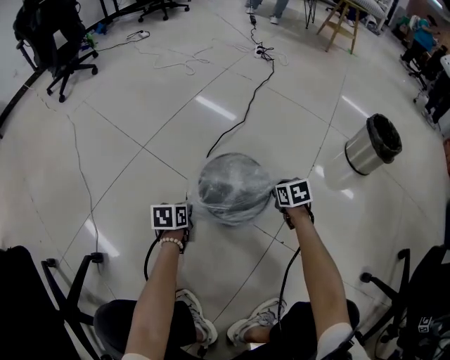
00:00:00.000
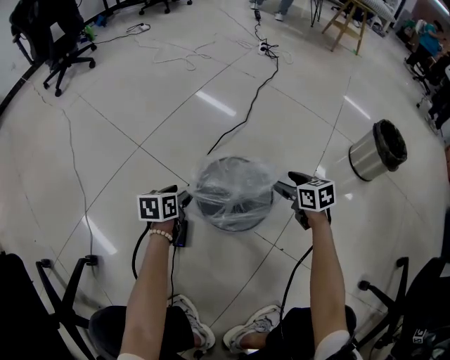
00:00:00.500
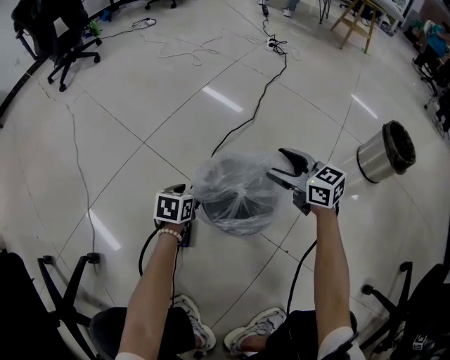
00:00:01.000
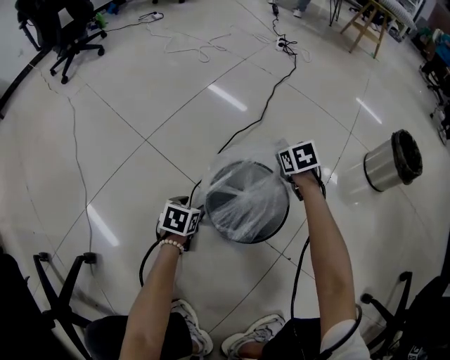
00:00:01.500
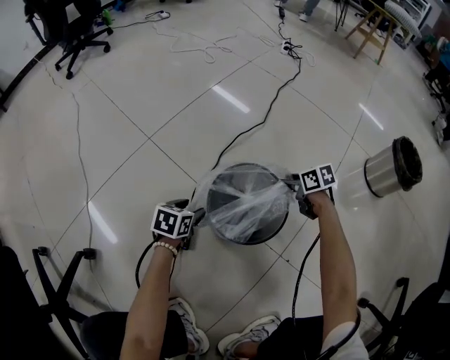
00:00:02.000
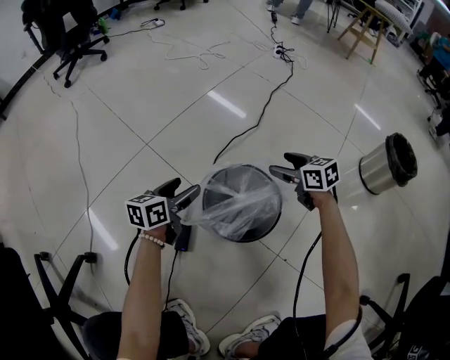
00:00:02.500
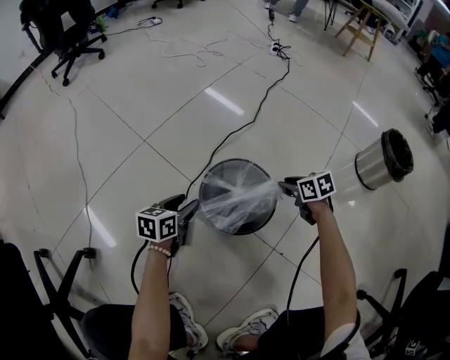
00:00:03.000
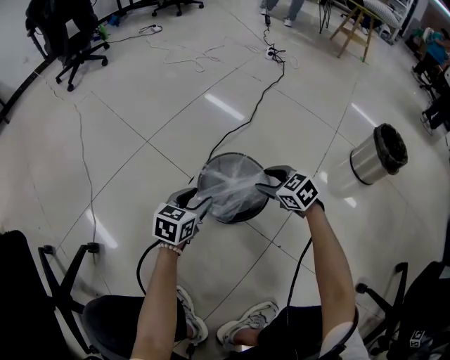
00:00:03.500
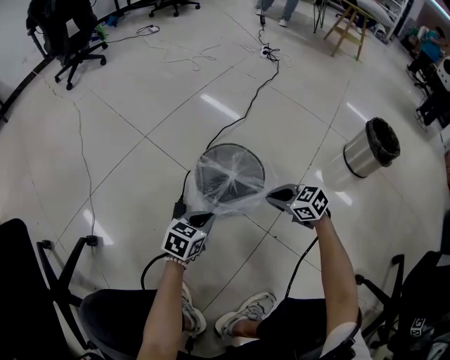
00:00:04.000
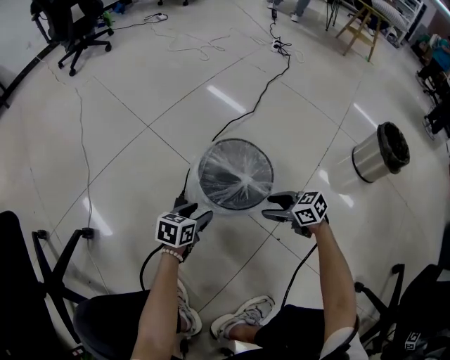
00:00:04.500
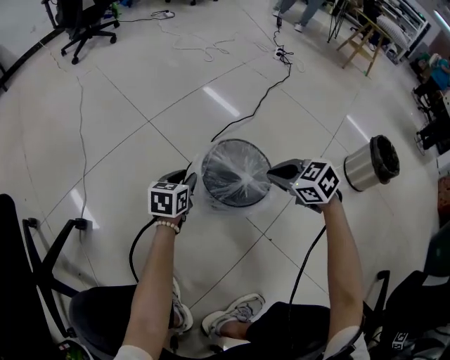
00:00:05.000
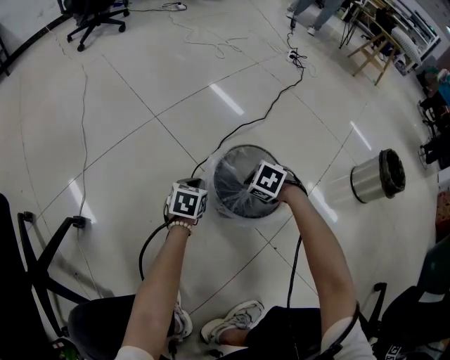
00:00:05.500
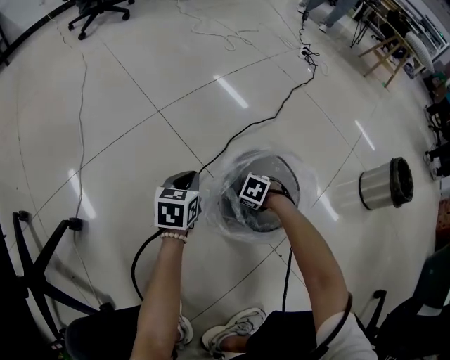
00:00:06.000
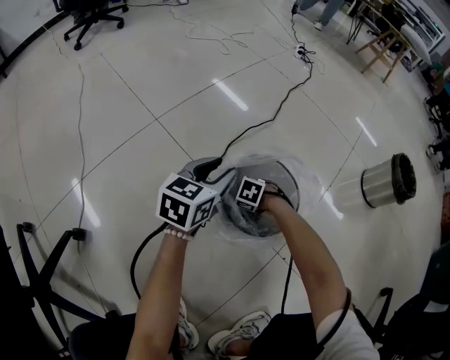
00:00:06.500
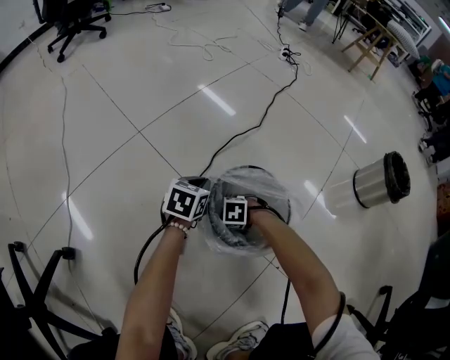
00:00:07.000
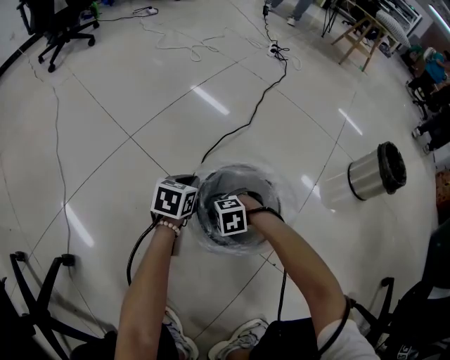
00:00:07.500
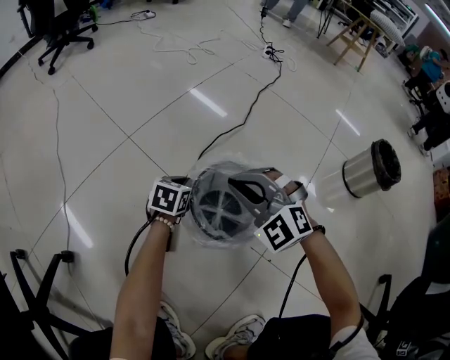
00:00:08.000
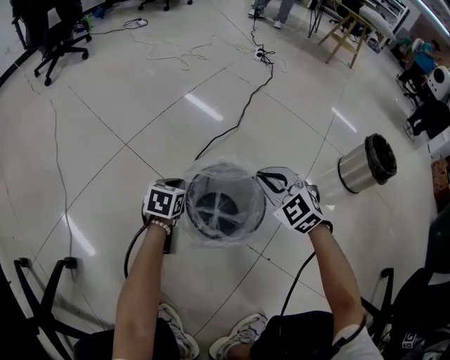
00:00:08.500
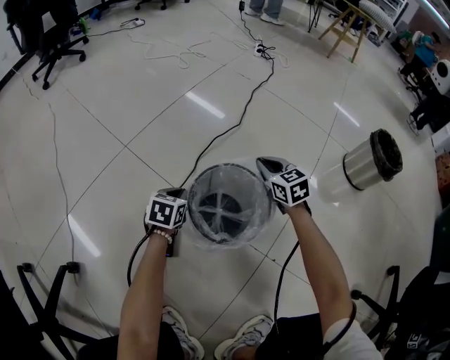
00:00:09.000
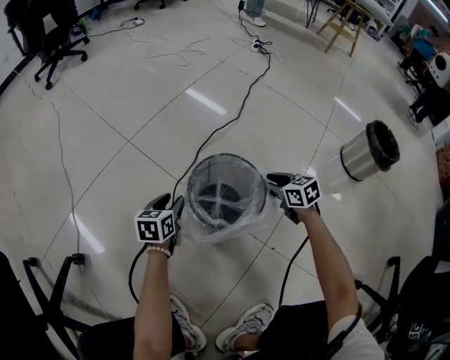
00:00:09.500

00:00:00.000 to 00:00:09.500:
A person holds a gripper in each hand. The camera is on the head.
00:00:00.000 to 00:00:02.000: The right gripper is displaced forward by some 10 cm, moves roughly 15 cm upward and comes back, swivels roughly 30 degrees, and opens its fingers. Meanwhile the left gripper opens up.
00:00:02.000 to 00:00:04.000: The right gripper moves backward and upward, some 20 cm, swivels approximately 40 degrees, and closes, while the left gripper moves backward, upward and to the right, roughly 20 cm, and closes its fingers.
00:00:04.000 to 00:00:05.500: The right gripper goes up and down, roughly 15 cm each way, reversing 2 times, angles its fingers downward, by some 40 degrees, and opens and closes again; the left gripper moves up and down over some 10 cm, changing direction 2 times, turns by some 20 degrees, and opens, then closes once more.
00:00:05.500 to 00:00:07.500: The right gripper moves downward, about 10 cm, and swivels approximately 30 degrees; the left gripper moves approximately 15 cm upward and comes back, and opens and closes again.
00:00:07.500 to 00:00:09.500: The right gripper ends up roughly 25 cm from where it was, twists approximately 60 degrees clockwise, seen from behind, and opens up. Meanwhile the left gripper moves some 10 cm, and opens up.

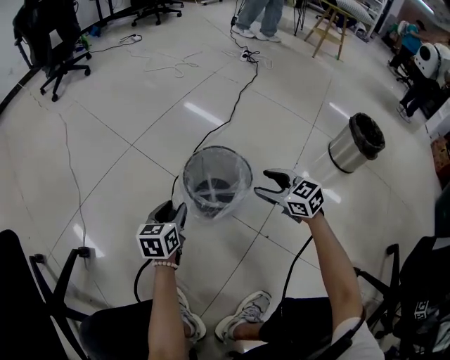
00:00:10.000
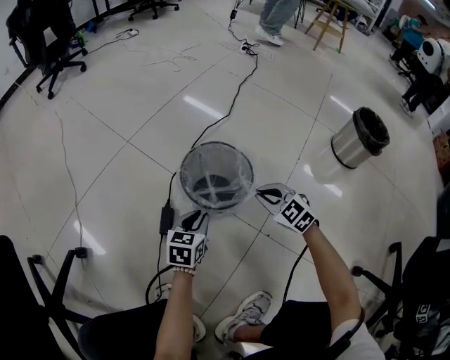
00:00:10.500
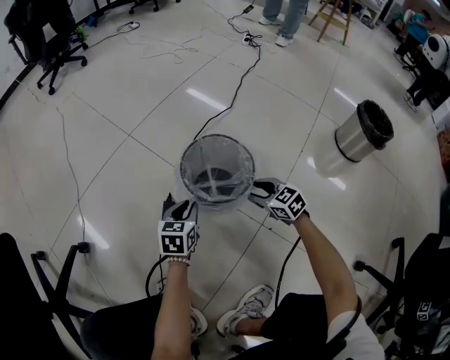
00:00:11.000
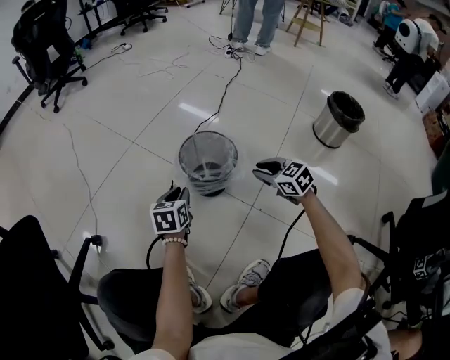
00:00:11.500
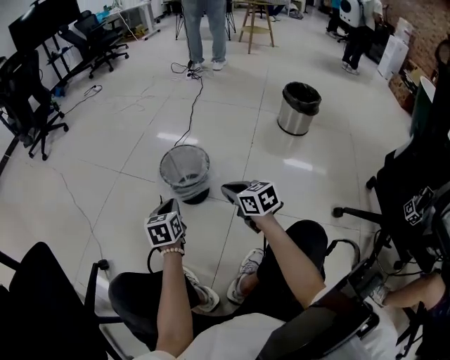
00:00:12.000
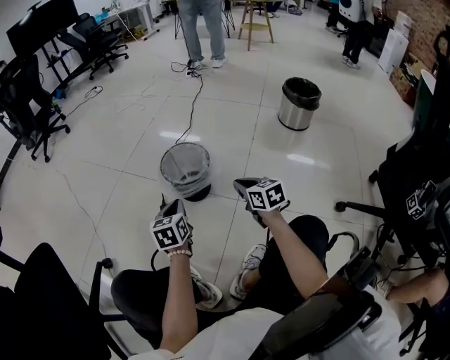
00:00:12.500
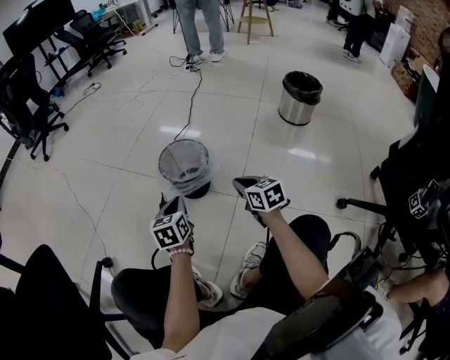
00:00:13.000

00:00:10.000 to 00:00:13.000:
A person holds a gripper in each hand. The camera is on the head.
00:00:10.000 to 00:00:11.500: The grippers both shift backward by roughly 5 cm. The right gripper moves about 10 cm downward and comes back, and closes.
00:00:11.500 to 00:00:13.000: The right gripper shifts about 10 cm backward, and rotates some 30 degrees, while the left gripper goes roughly 10 cm backward and upward.

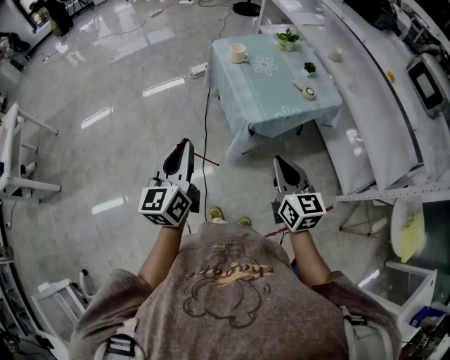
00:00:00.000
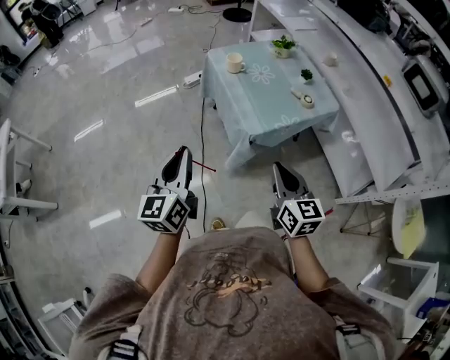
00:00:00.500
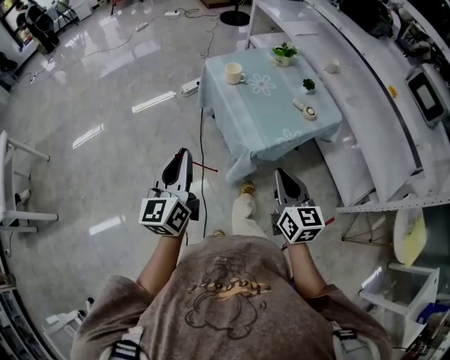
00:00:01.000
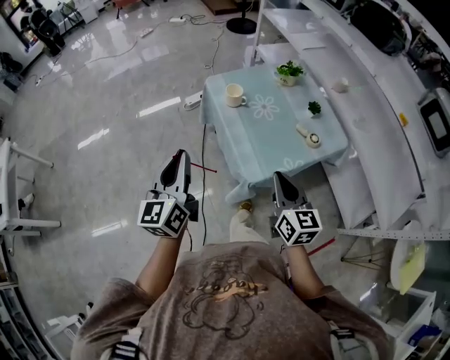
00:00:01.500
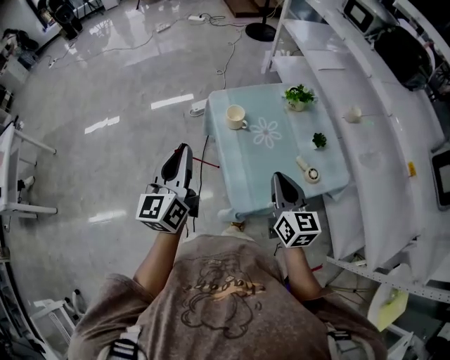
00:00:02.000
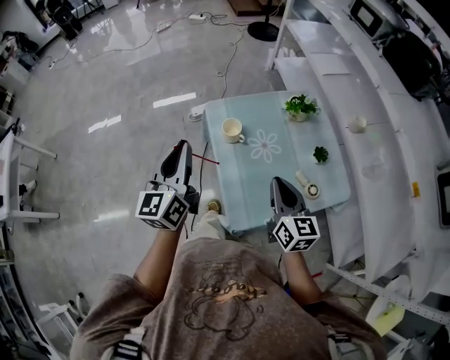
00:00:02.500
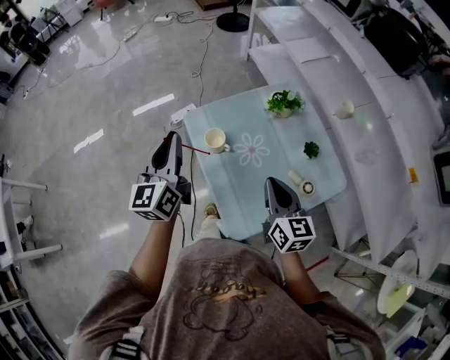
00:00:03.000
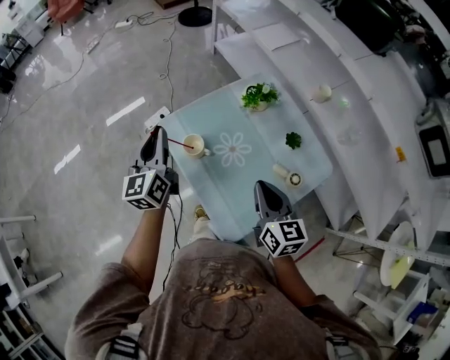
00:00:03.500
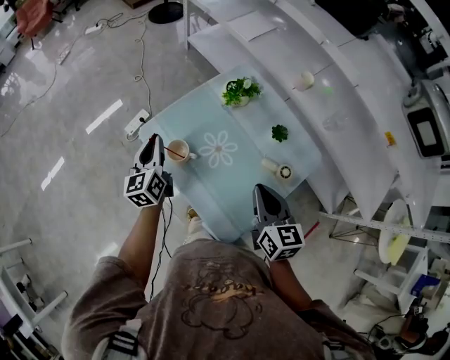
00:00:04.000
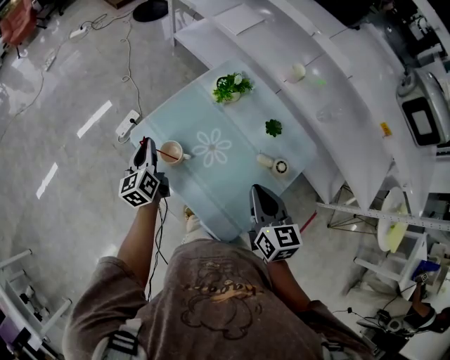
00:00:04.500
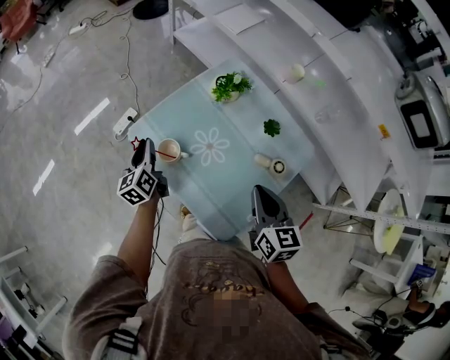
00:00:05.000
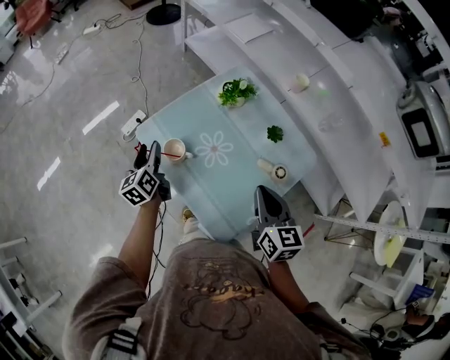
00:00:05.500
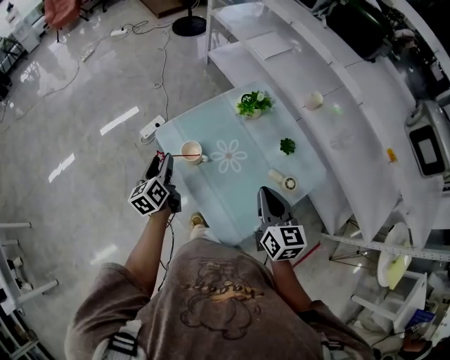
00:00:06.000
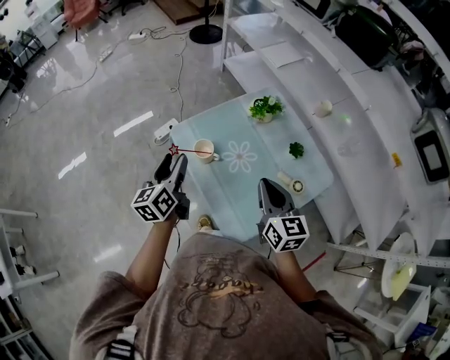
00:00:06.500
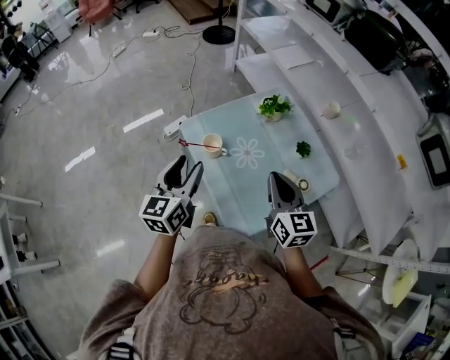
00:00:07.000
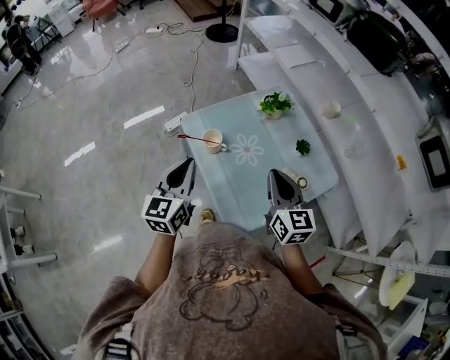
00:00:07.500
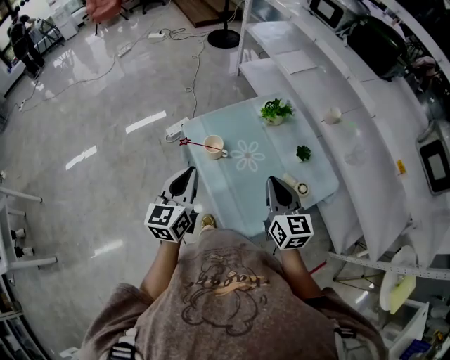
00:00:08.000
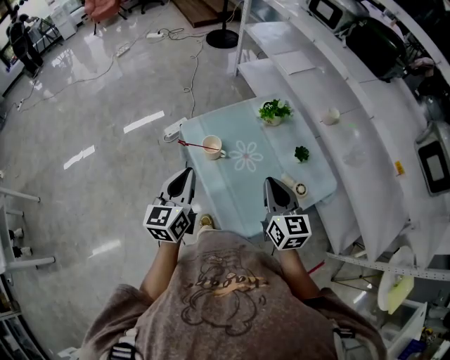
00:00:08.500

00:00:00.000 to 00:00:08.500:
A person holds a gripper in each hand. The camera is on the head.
00:00:00.000 to 00:00:02.000: Both grippers move forward, roughly 35 cm.
00:00:02.000 to 00:00:04.000: The left gripper travels forward and downward by roughly 40 cm, and turns by approximately 20 degrees. Meanwhile the right gripper shifts roughly 10 cm forward, and swivels some 30 degrees.
00:00:04.000 to 00:00:06.500: The left gripper heads backward and upward, covering roughly 15 cm, and opens its fingers.
00:00:06.500 to 00:00:08.500: The left gripper shifts approximately 10 cm backward, and closes up.

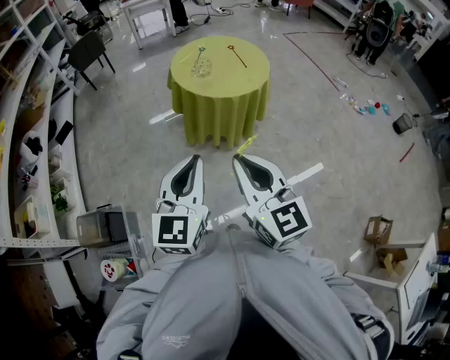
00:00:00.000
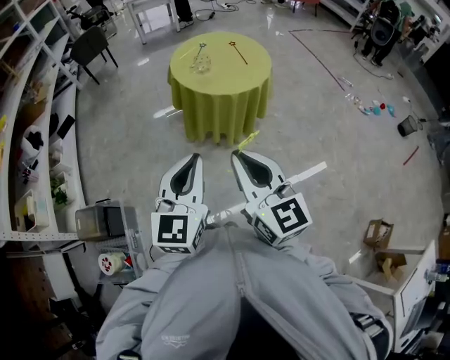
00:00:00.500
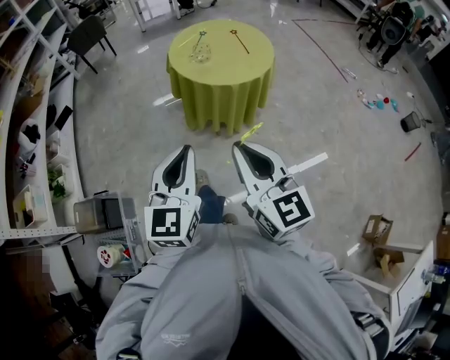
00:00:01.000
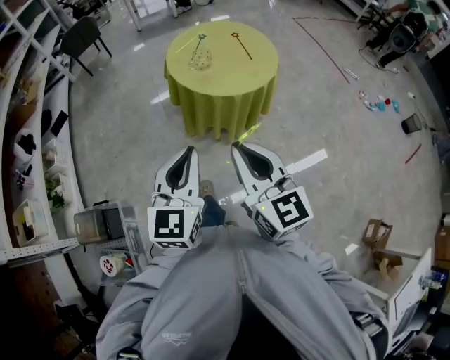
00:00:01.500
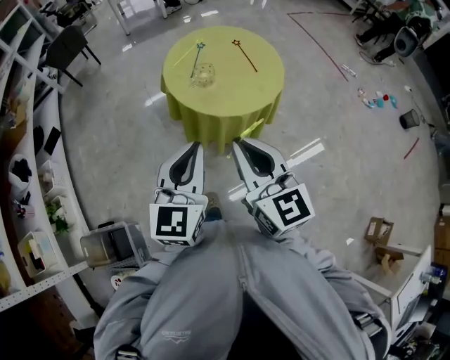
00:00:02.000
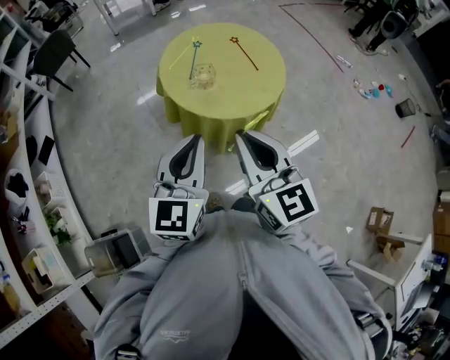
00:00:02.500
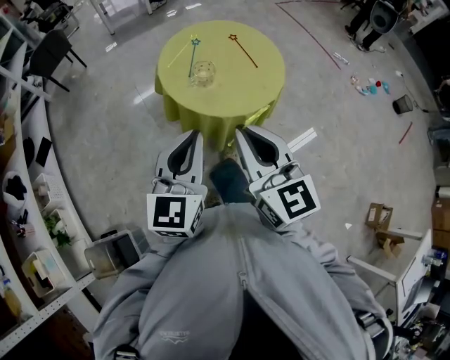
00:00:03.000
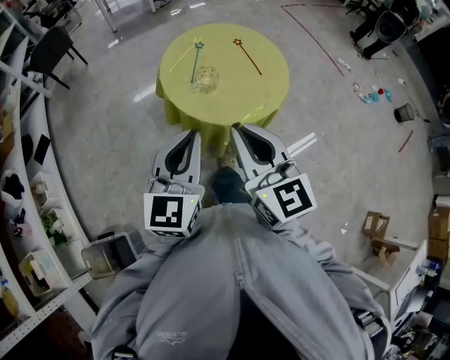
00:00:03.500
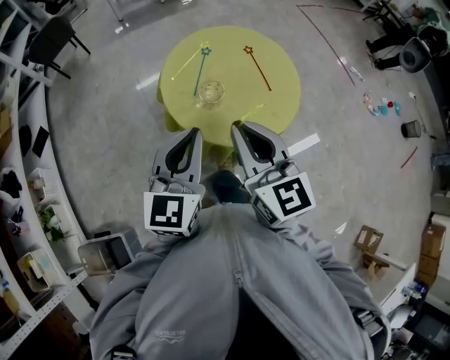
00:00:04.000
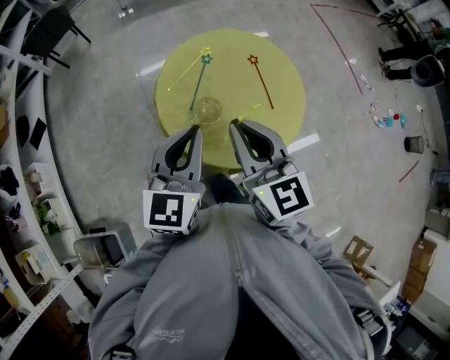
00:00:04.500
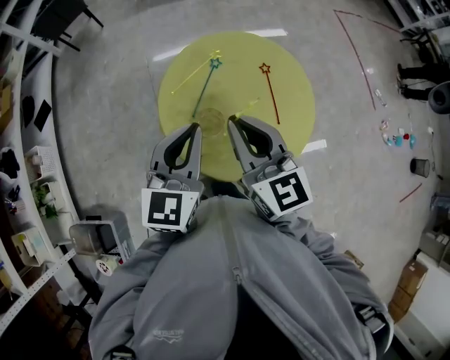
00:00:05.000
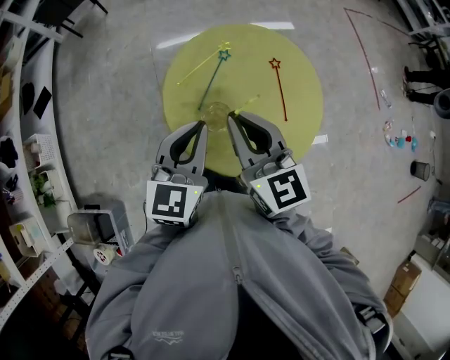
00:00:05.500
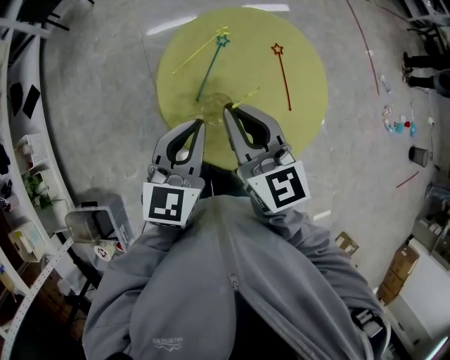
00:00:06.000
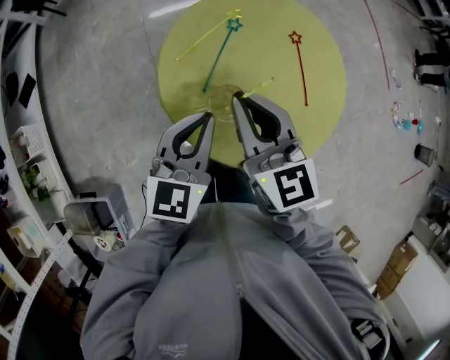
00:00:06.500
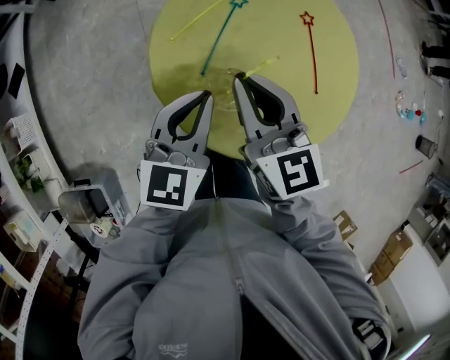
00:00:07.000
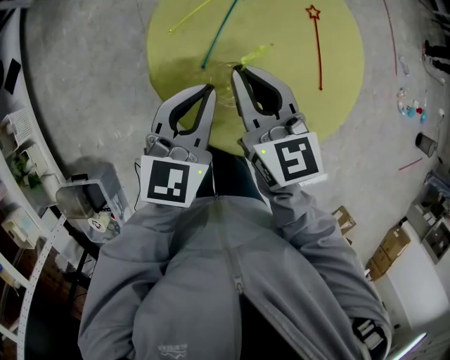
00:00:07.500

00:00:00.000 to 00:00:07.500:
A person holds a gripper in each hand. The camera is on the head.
00:00:00.000 to 00:00:02.000: The two grippers go roughly 30 cm forward.
00:00:02.000 to 00:00:04.000: The two grippers go roughly 25 cm forward.
00:00:04.000 to 00:00:05.500: The two grippers go some 20 cm forward.
00:00:05.500 to 00:00:07.500: Both grippers travel together downward, approximately 20 cm.
